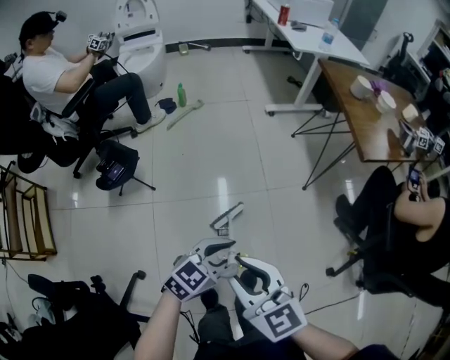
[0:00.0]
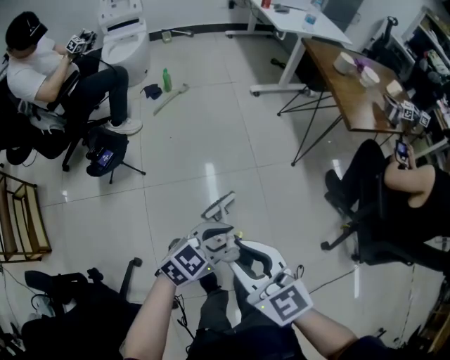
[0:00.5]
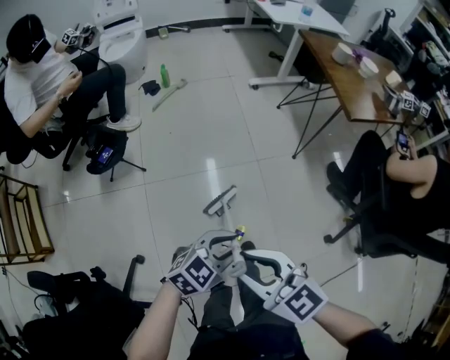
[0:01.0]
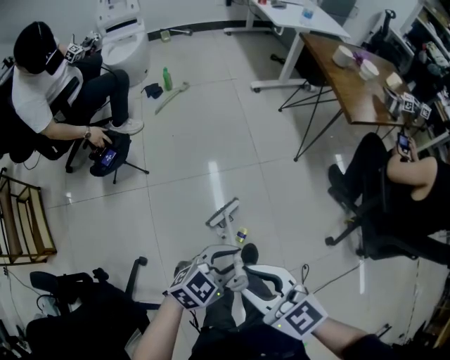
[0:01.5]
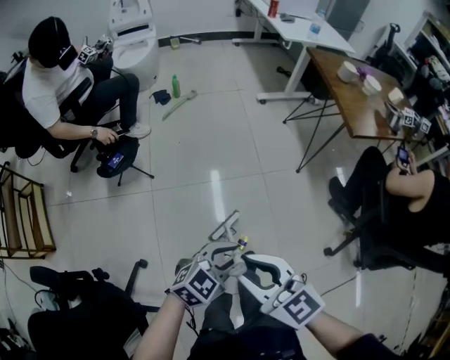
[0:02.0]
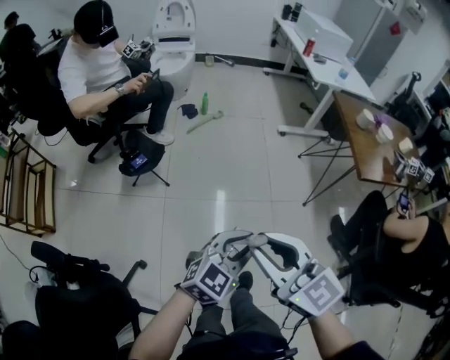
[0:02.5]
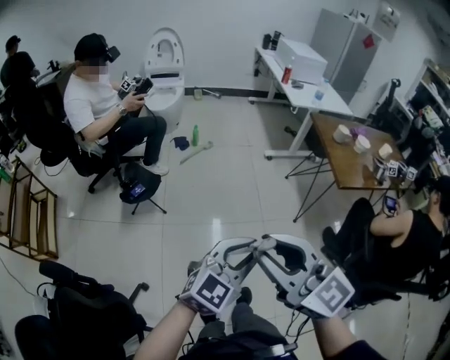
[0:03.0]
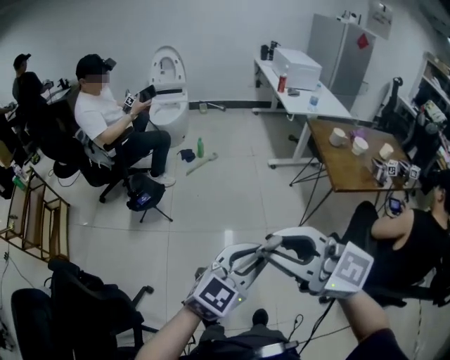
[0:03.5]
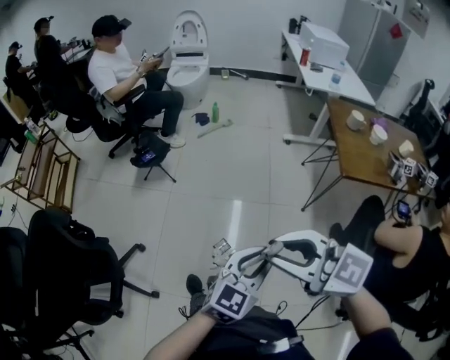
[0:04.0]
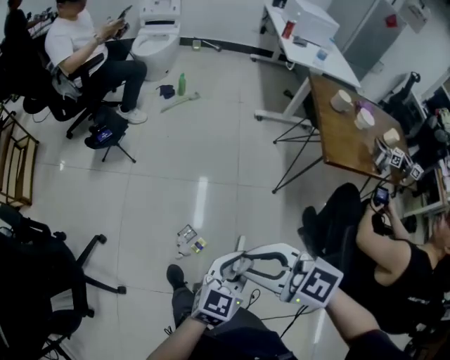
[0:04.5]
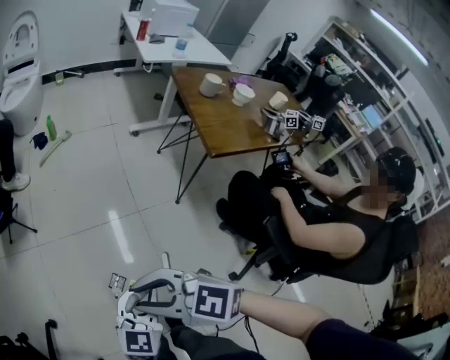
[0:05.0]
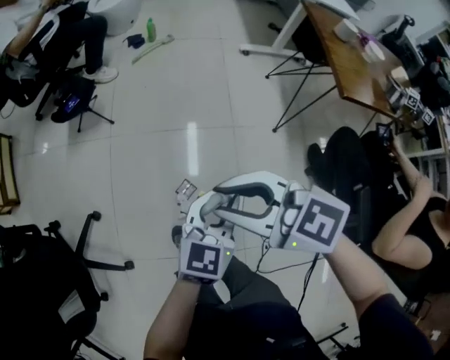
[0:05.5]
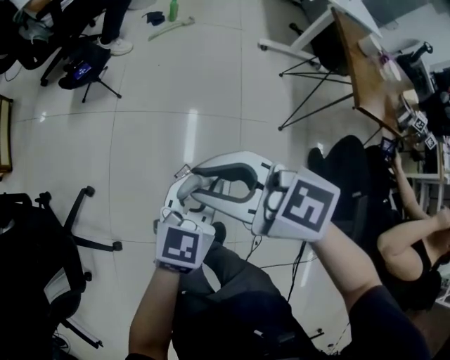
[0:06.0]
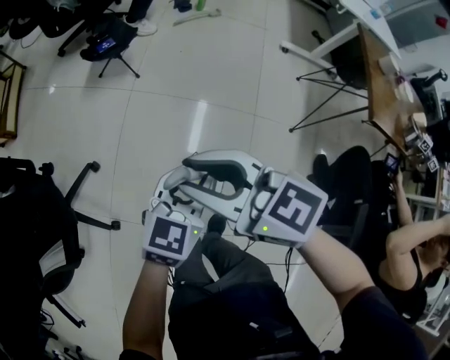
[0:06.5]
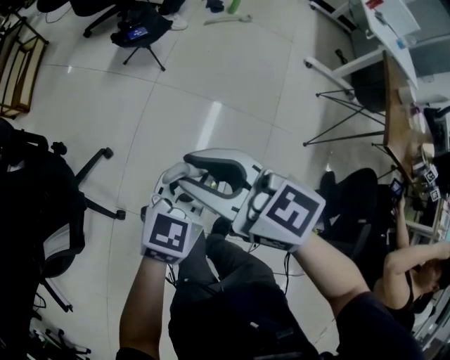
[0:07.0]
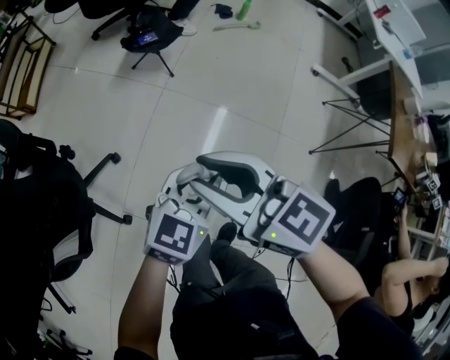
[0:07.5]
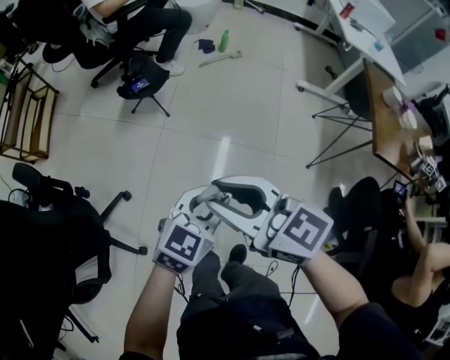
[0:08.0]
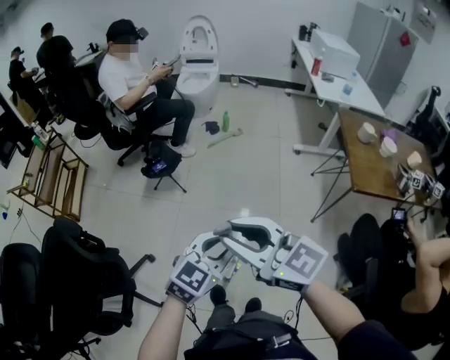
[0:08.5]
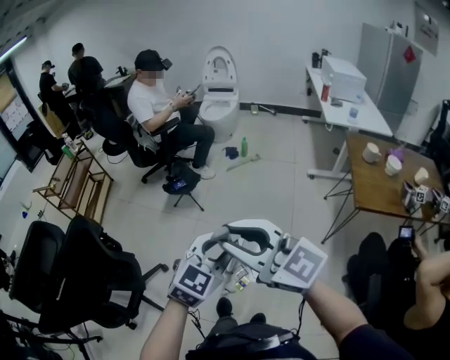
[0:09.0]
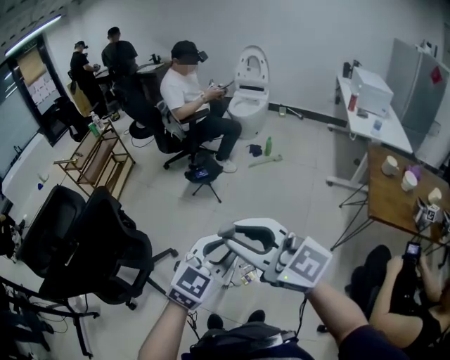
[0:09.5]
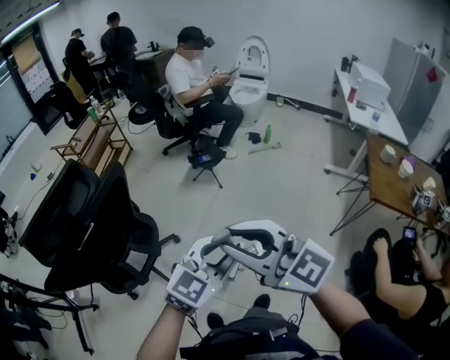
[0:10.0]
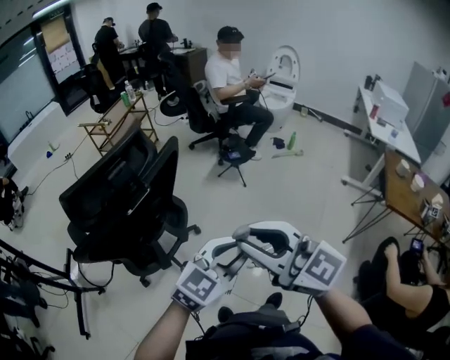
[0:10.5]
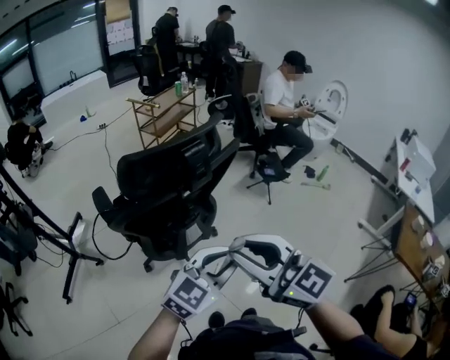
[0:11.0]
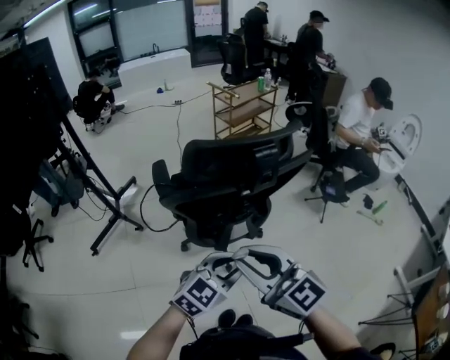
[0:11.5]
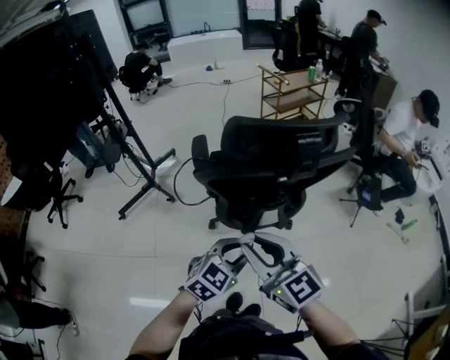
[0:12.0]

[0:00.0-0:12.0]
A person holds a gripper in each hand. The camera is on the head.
0.0 to 2.0 s: The two grippers go about 10 cm backward.
2.0 to 4.0 s: The grippers both shift upward by some 20 cm. The right gripper rotates about 40 degrees; the left gripper swivels roughly 30 degrees.
4.0 to 6.0 s: The right gripper travels downward, forward and to the left by some 25 cm. Meanwhile the left gripper travels downward and forward by roughly 25 cm.
6.0 to 8.0 s: Both grippers move to the left and upward, about 10 cm.
8.0 to 10.0 s: The left gripper goes about 30 cm upward and backward. Meanwhile the right gripper travels backward and upward by roughly 35 cm, and turns by approximately 30 degrees.
10.0 to 12.0 s: The right gripper changes place by approximately 40 cm, and turns by about 40 degrees. Meanwhile the left gripper ends up approximately 40 cm from where it was, and changes its angle by approximately 50 degrees.

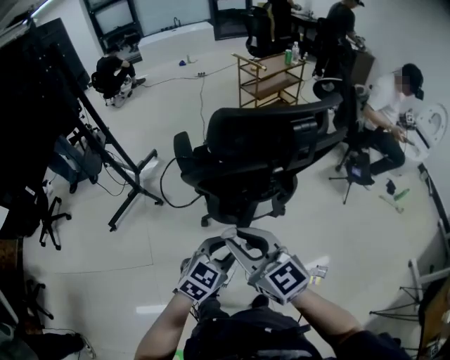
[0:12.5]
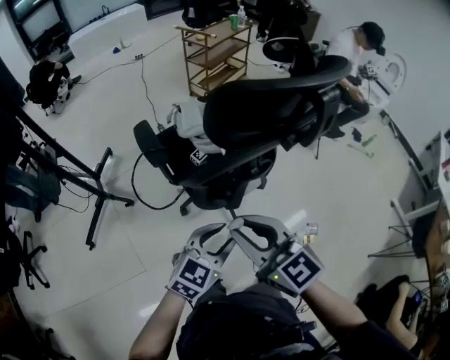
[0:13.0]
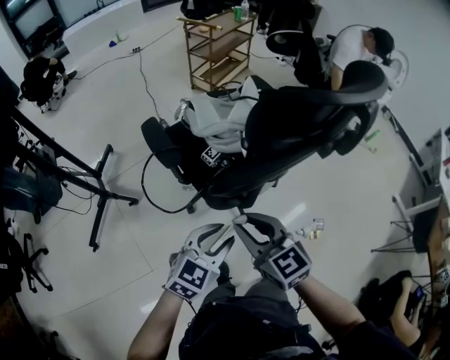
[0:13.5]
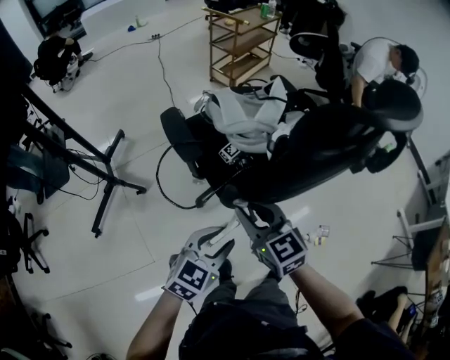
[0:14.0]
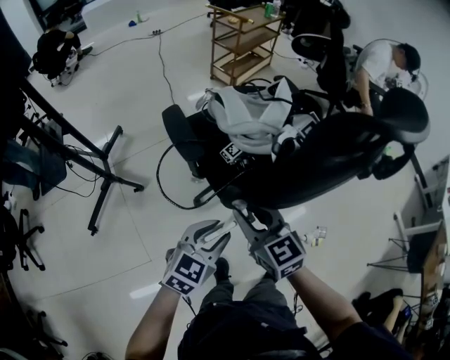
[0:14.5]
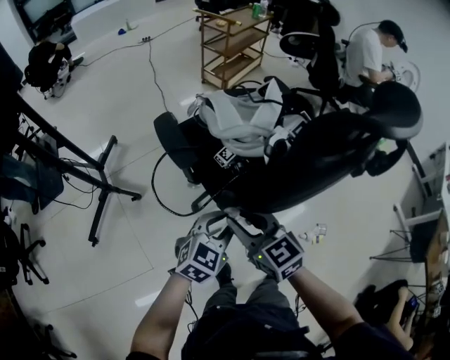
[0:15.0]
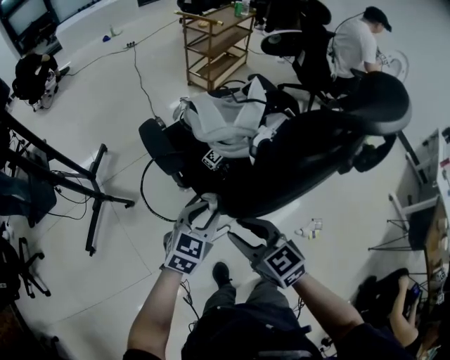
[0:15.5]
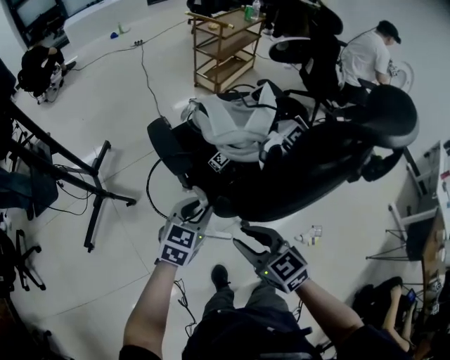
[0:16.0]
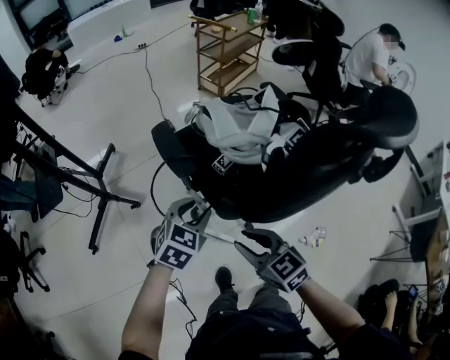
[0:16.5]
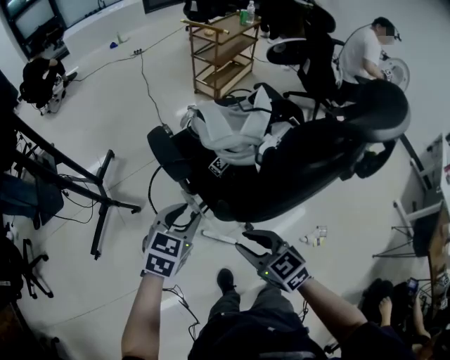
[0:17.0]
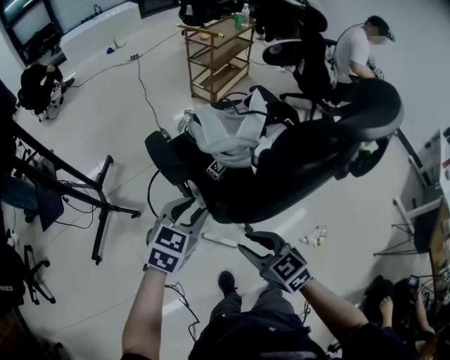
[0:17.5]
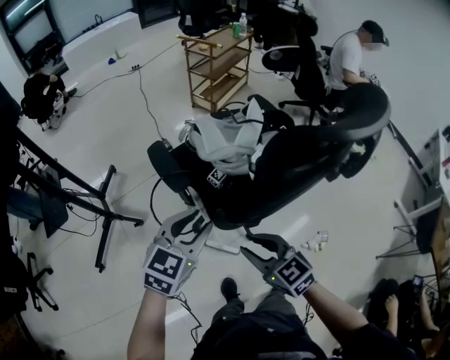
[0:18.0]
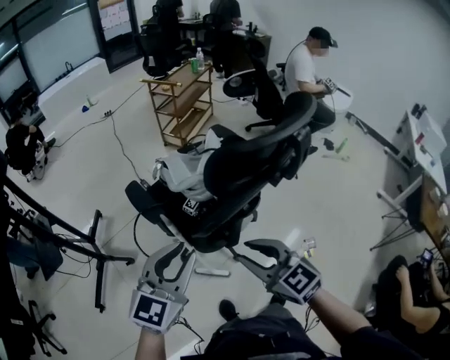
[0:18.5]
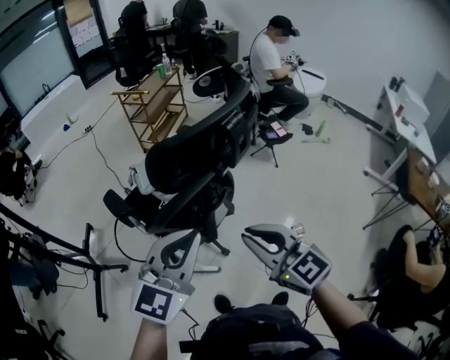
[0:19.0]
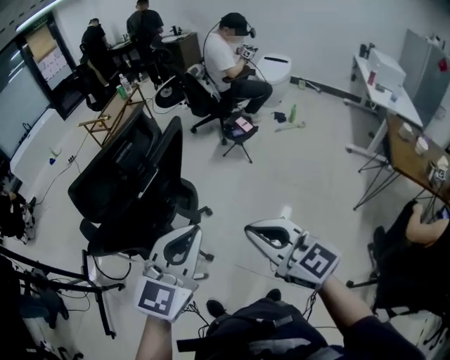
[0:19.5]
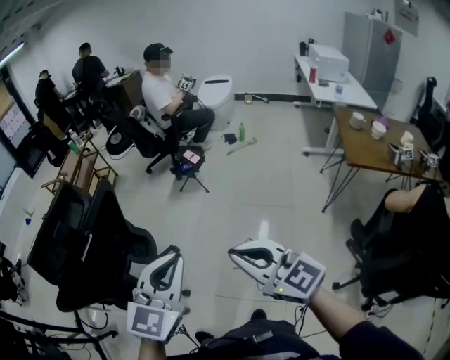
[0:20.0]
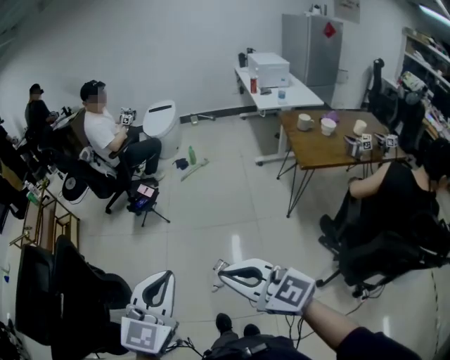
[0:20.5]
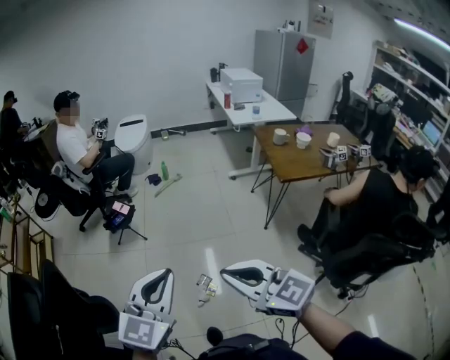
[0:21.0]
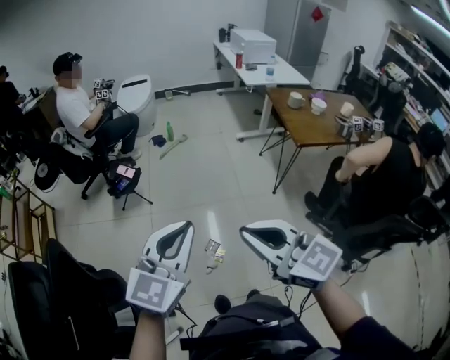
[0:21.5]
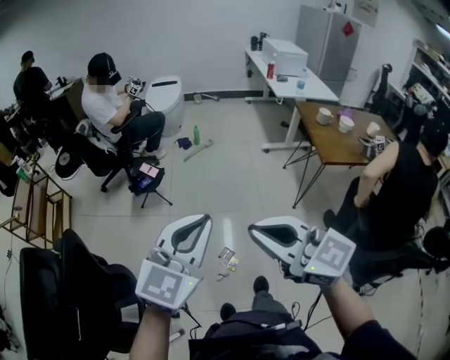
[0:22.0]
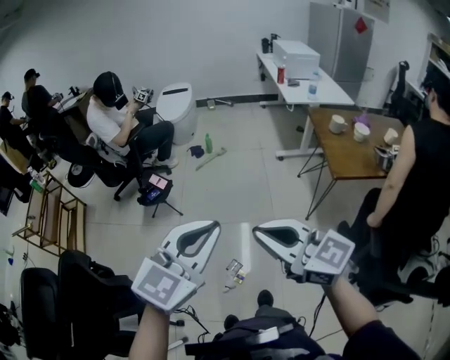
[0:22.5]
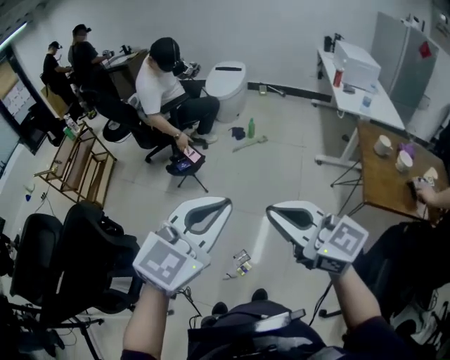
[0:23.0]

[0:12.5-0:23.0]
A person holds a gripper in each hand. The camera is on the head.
12.5 to 14.5 s: The left gripper heads to the left, covering about 20 cm. The right gripper moves to the left, downward and forward, roughly 25 cm, and turns by some 30 degrees.
14.5 to 16.5 s: The right gripper changes place by some 5 cm. The left gripper moves forward, approximately 10 cm.
16.5 to 19.0 s: The right gripper goes some 30 cm upward and to the right, and changes its angle by some 30 degrees. The left gripper heads upward, to the right and backward, covering about 35 cm, angles its fingers upward, by about 30 degrees, and closes.
19.0 to 21.0 s: Both grippers are carried roughly 50 cm. The left gripper turns by approximately 40 degrees. Meanwhile the right gripper swivels some 40 degrees.
21.0 to 23.0 s: The left gripper travels forward and to the right by about 20 cm; the right gripper heads forward, covering roughly 20 cm, and changes its angle by approximately 20 degrees.

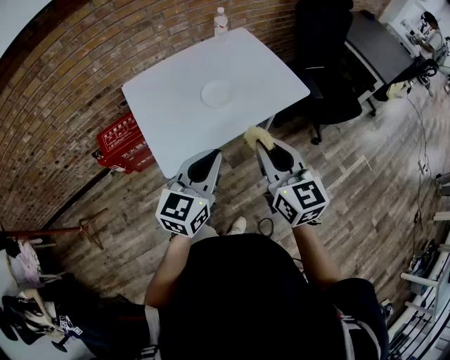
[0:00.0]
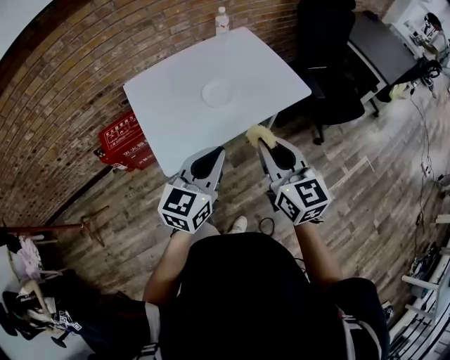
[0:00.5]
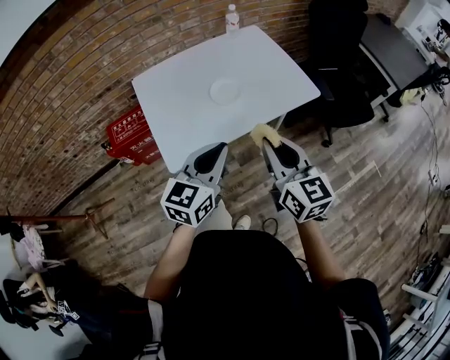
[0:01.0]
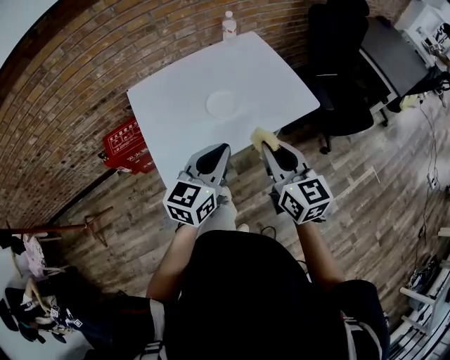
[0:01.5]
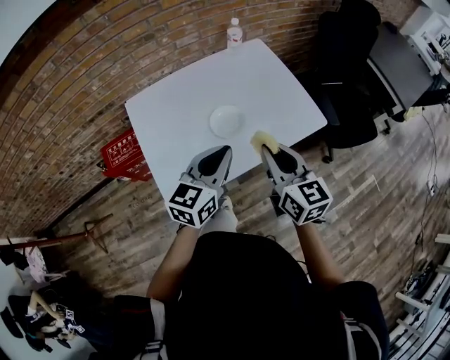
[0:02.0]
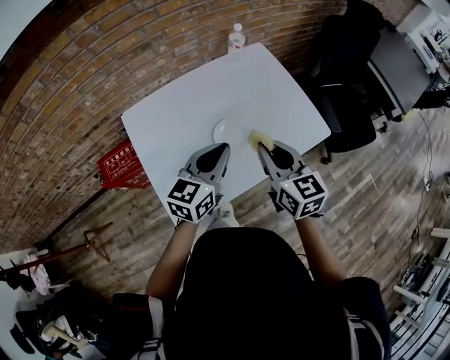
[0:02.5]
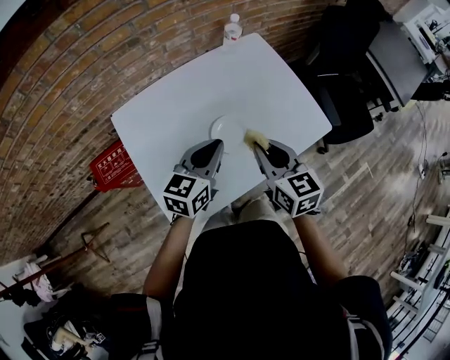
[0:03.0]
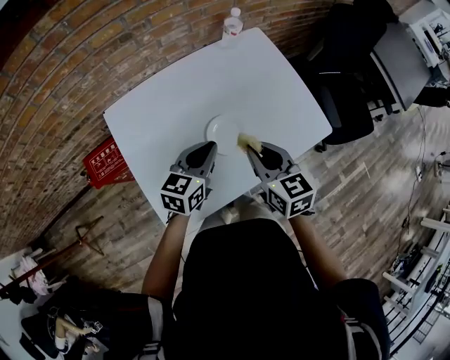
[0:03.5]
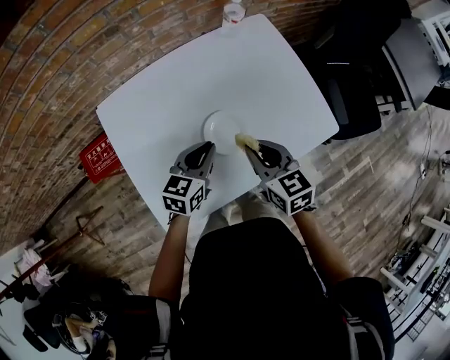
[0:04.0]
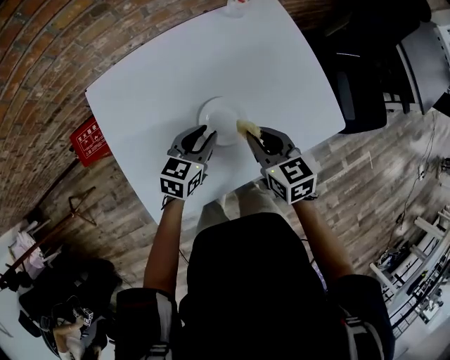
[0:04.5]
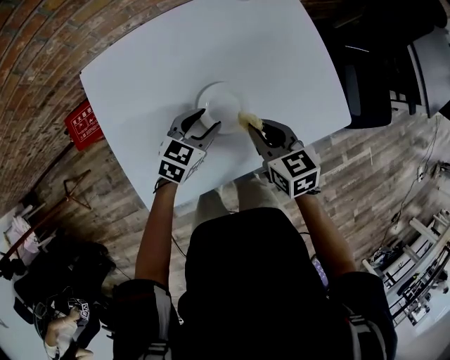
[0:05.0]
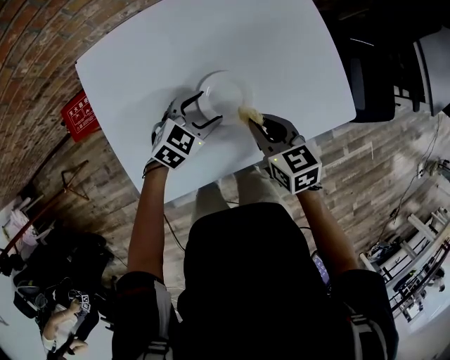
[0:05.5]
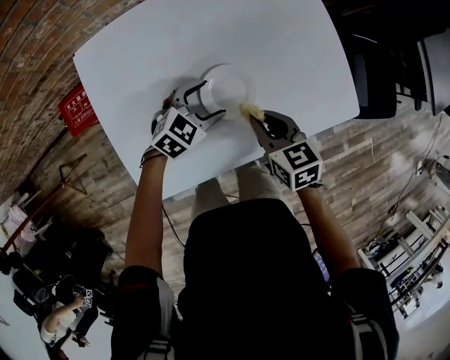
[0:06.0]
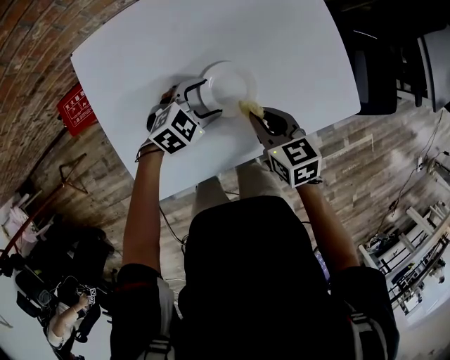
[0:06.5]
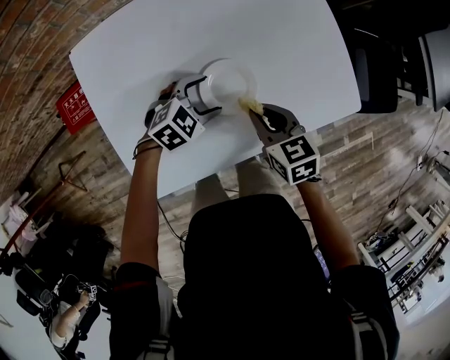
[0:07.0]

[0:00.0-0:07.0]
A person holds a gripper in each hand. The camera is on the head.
0.0 to 2.0 s: The grippers both shift forward by roughly 15 cm.
2.0 to 3.5 s: The two grippers go about 15 cm forward, downward and to the left.
3.5 to 5.0 s: Both grippers travel together downward, about 15 cm. The left gripper opens.
5.0 to 7.0 s: The left gripper swivels roughly 30 degrees, and opens up.
